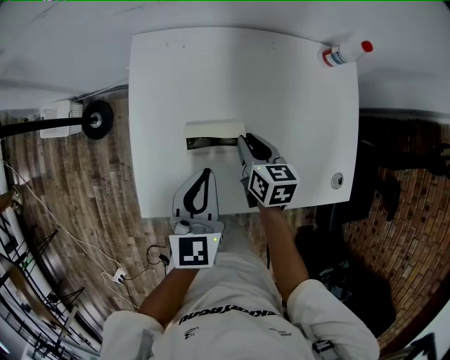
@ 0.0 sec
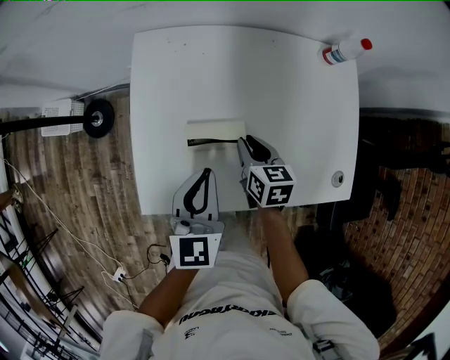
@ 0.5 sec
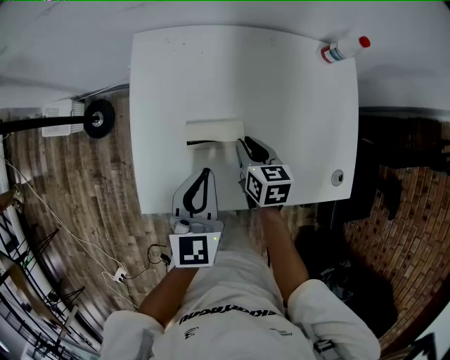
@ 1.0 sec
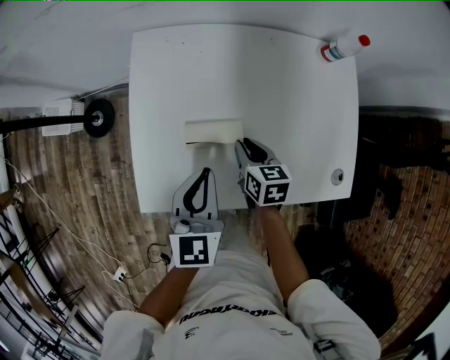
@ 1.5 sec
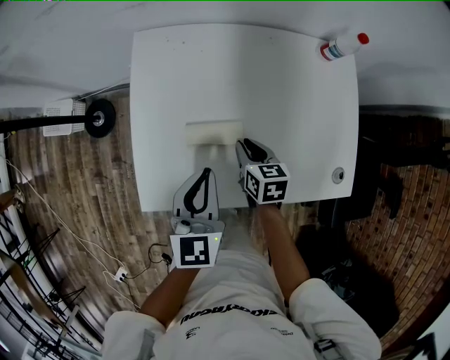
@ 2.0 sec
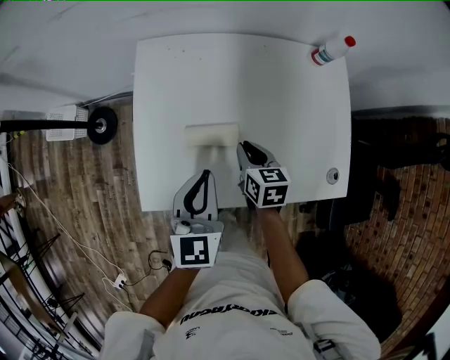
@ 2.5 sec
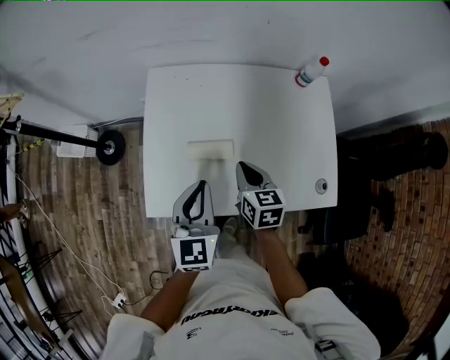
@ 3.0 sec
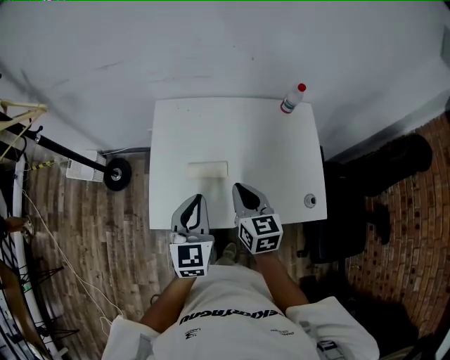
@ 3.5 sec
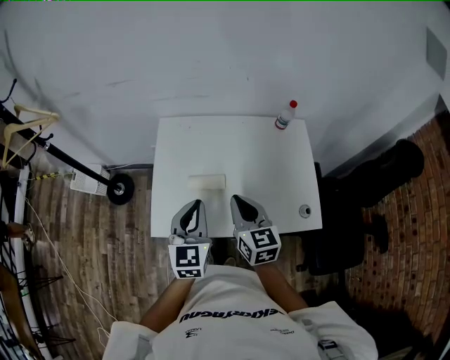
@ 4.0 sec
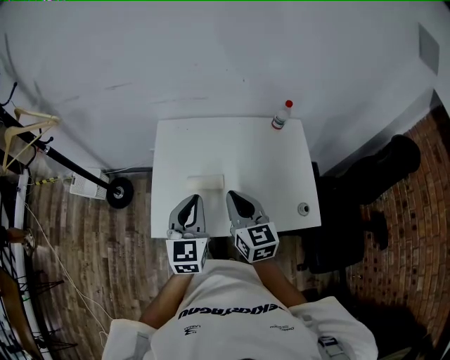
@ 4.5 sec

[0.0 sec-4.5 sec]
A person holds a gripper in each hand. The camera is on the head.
0.0 sec to 2.0 sec: The right gripper ends up about 5 cm from where it was.
2.0 sec to 4.5 sec: The right gripper shifts approximately 30 cm upward, and tilts its fingers some 30 degrees upward. The left gripper moves upward and backward, approximately 20 cm.

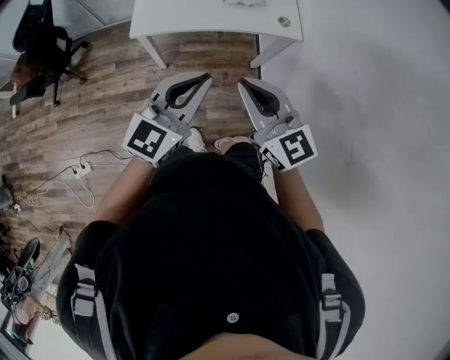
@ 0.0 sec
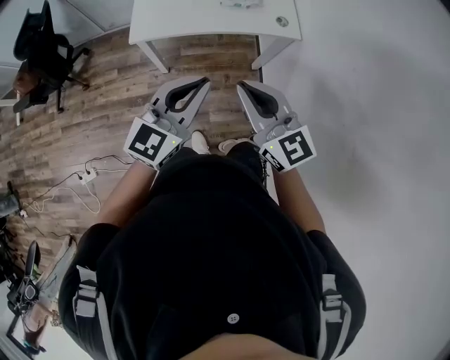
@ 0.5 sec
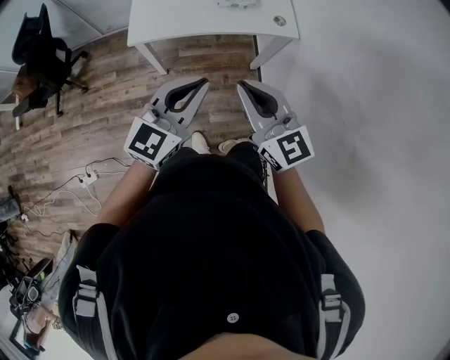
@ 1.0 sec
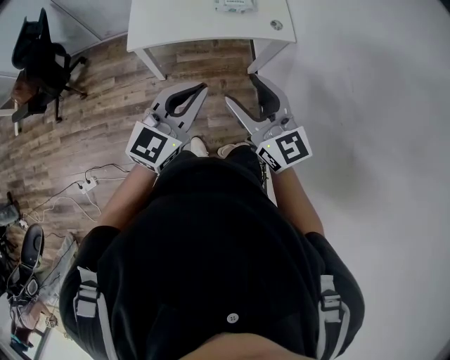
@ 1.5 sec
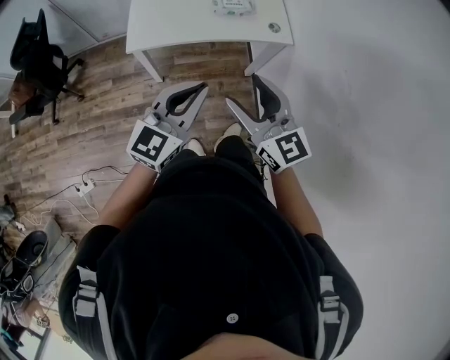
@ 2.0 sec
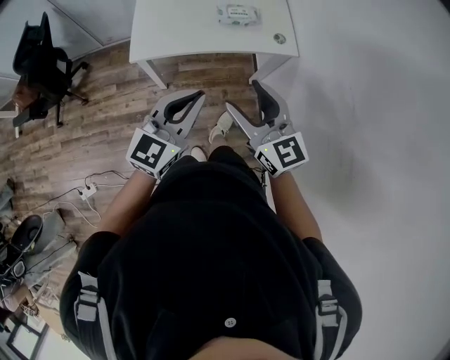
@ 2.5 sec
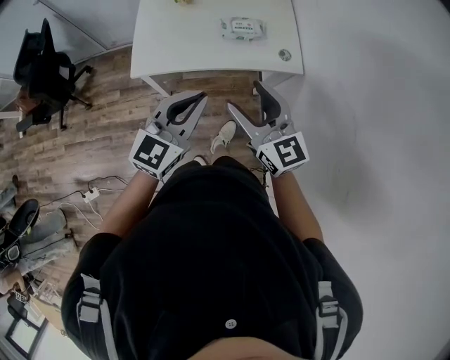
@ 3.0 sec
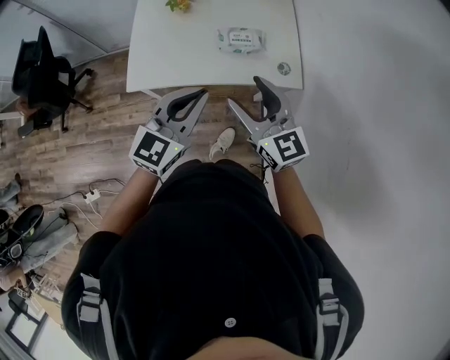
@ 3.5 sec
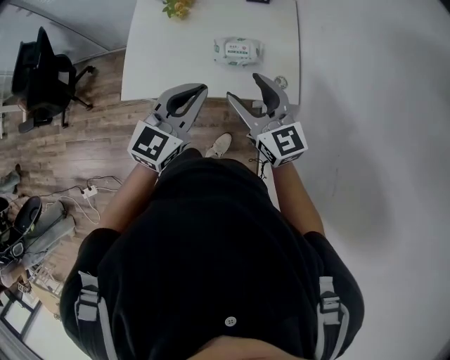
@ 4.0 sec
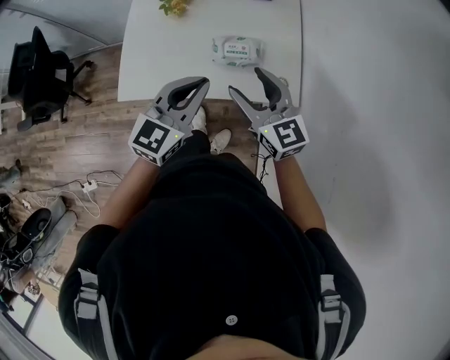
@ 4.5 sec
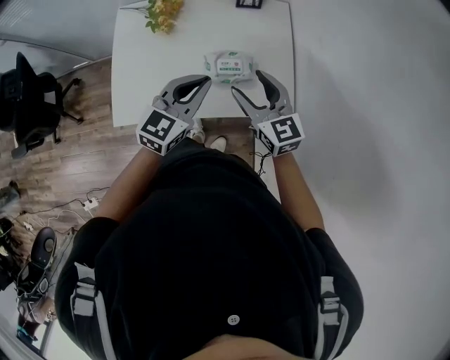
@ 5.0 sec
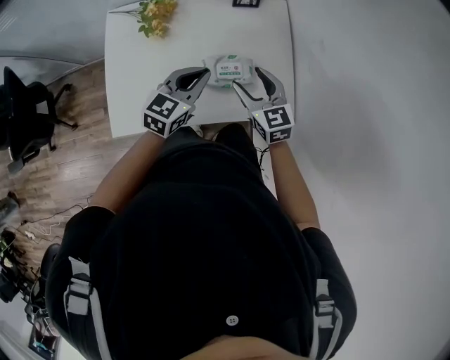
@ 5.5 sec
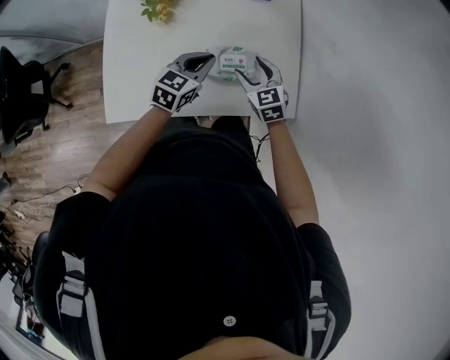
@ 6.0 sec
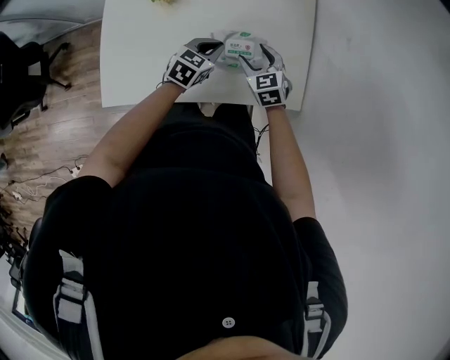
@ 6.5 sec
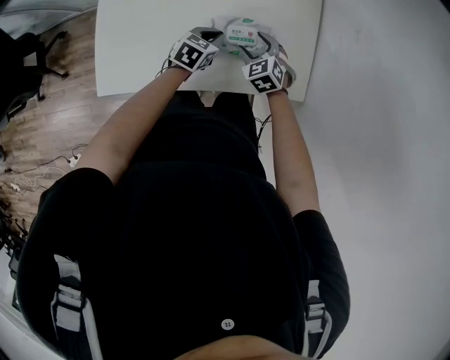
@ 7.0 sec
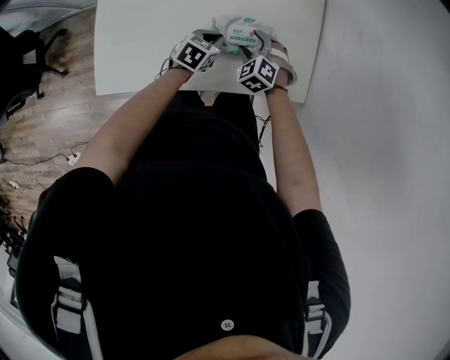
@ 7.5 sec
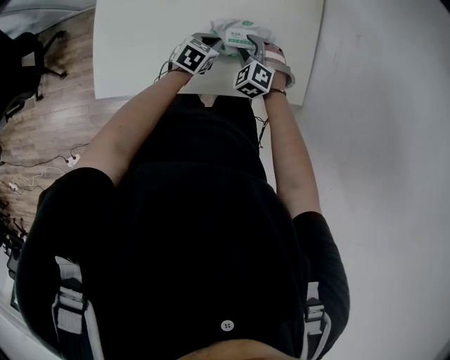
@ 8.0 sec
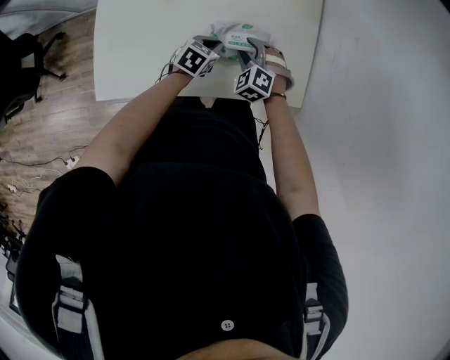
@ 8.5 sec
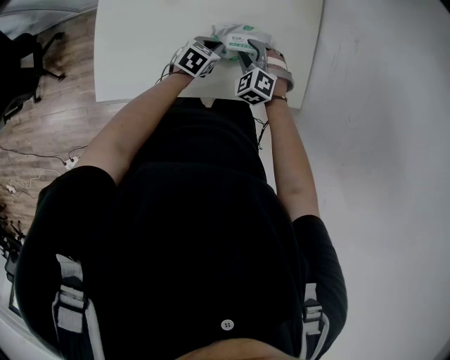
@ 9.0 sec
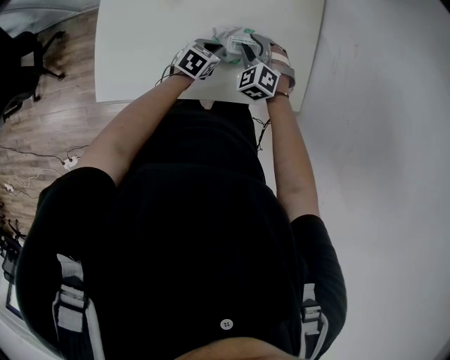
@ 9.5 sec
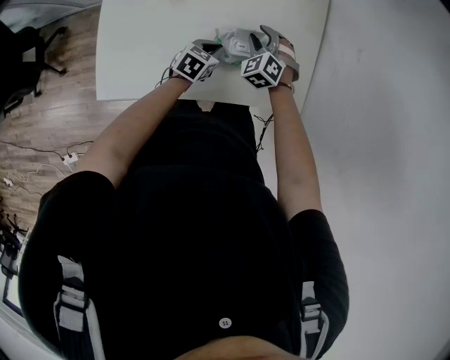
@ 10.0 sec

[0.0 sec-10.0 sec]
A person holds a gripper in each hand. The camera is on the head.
0.0 sec to 2.0 sec: The right gripper opens up.
2.0 sec to 4.0 sec: Both grippers move forward, about 35 cm.
4.0 sec to 6.0 sec: The right gripper heads downward and forward, covering some 30 cm, and angles its fingers downward, by about 30 degrees; the left gripper goes about 35 cm forward and downward, and rotates roughly 20 degrees.
6.0 sec to 8.0 sec: The two grippers go approximately 15 cm downward. The left gripper swivels some 20 degrees. Meanwhile the right gripper rotates roughly 40 degrees.
8.0 sec to 10.0 sec: The right gripper is displaced forward by some 5 cm.

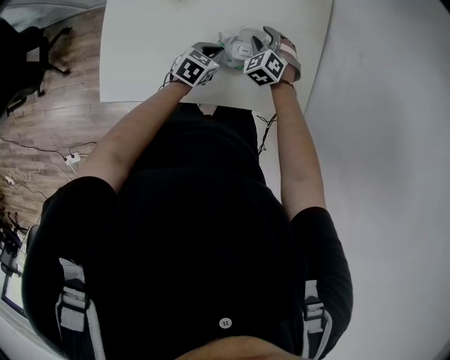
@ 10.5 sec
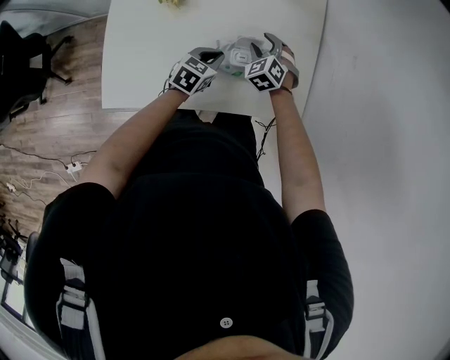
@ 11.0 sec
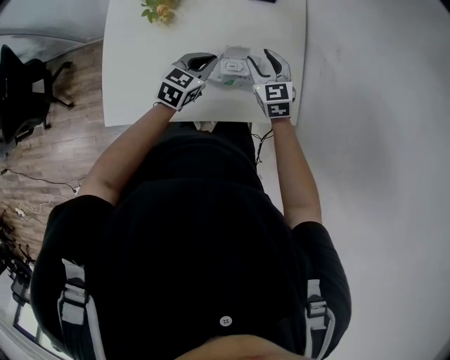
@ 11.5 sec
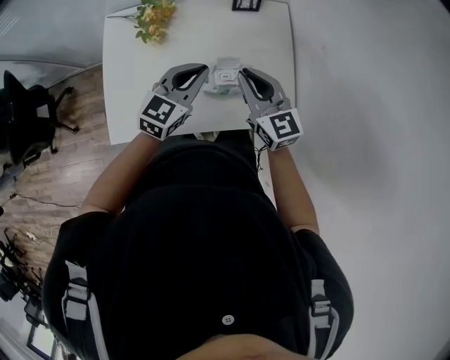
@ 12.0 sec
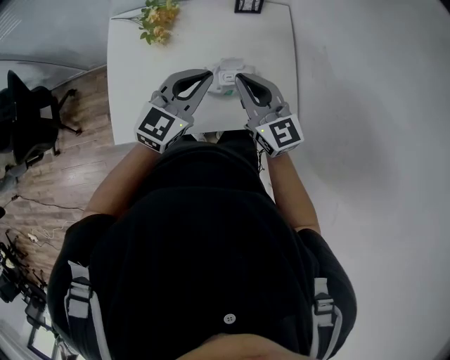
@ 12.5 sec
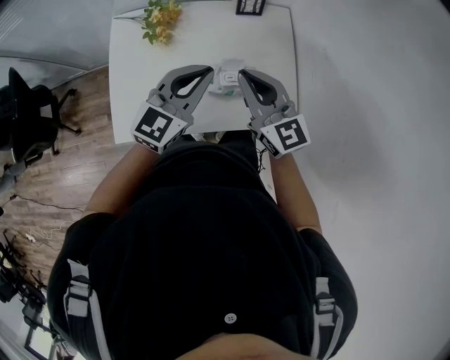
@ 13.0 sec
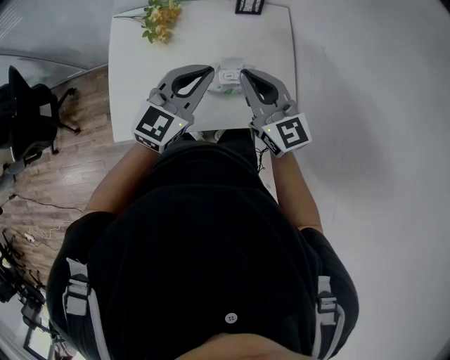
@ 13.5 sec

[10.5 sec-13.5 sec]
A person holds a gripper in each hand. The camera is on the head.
10.5 sec to 12.0 sec: The two grippers go roughly 25 cm upward. The left gripper rotates roughly 30 degrees. Meanwhile the right gripper tips its fingers upward by roughly 40 degrees, and closes its fingers.
12.0 sec to 13.5 sec: Both grippers travel together upward, roughly 10 cm.

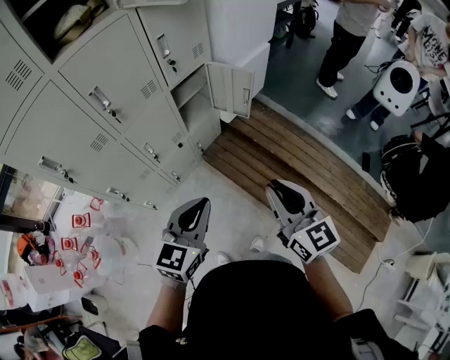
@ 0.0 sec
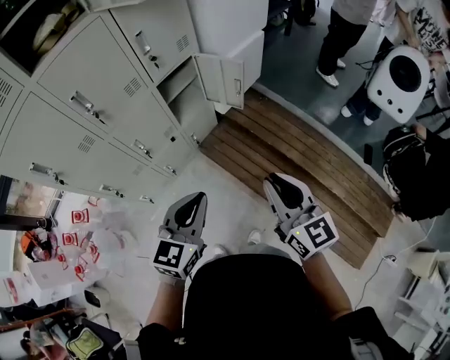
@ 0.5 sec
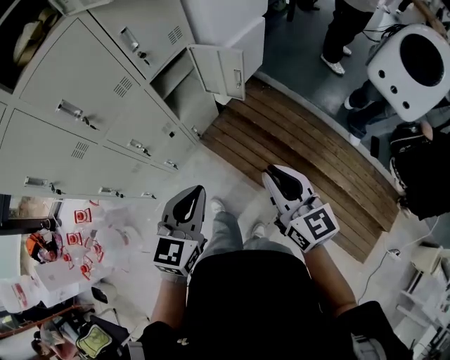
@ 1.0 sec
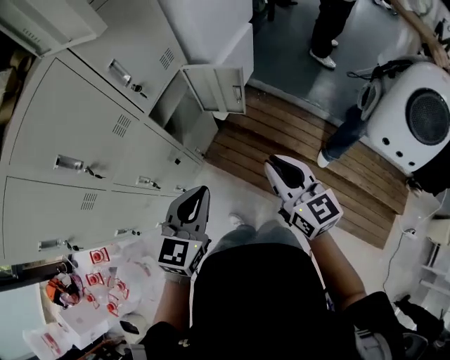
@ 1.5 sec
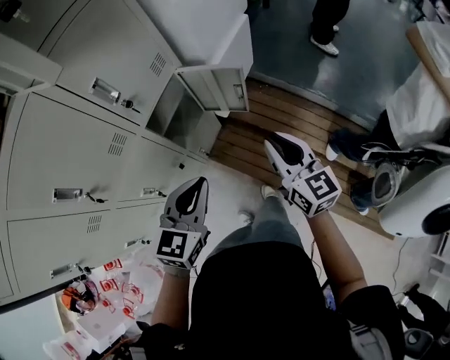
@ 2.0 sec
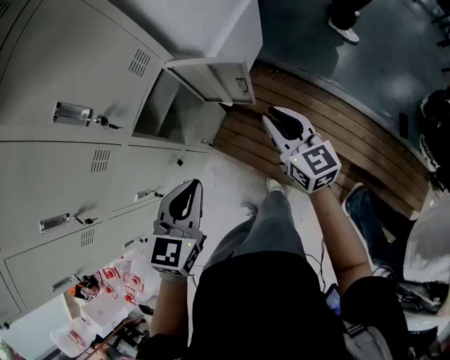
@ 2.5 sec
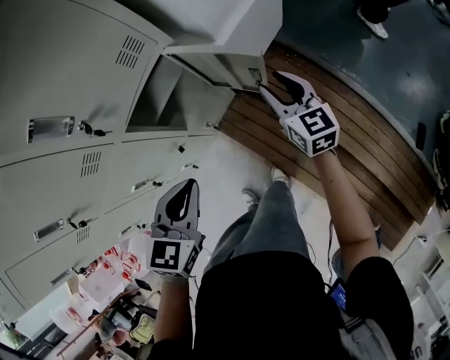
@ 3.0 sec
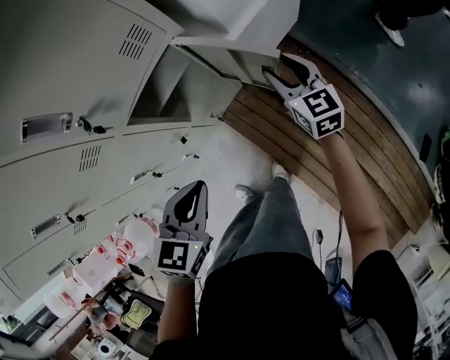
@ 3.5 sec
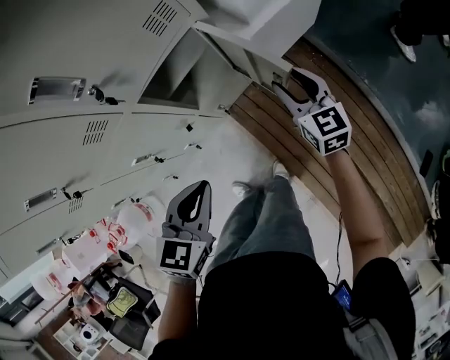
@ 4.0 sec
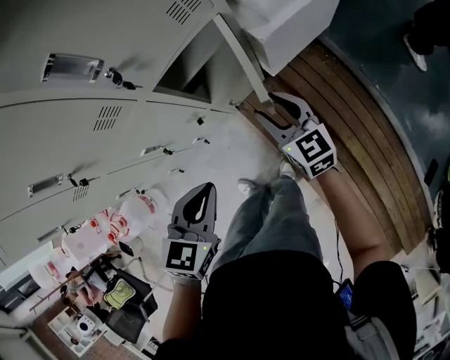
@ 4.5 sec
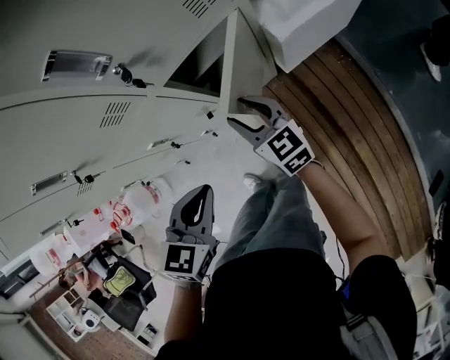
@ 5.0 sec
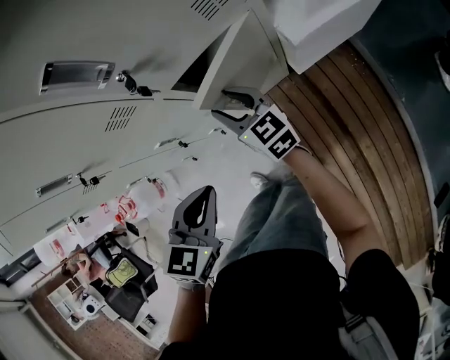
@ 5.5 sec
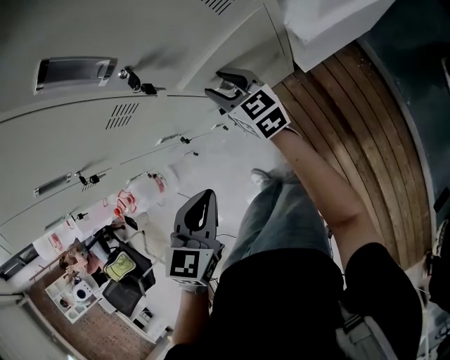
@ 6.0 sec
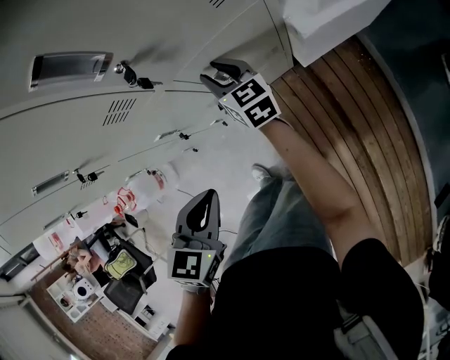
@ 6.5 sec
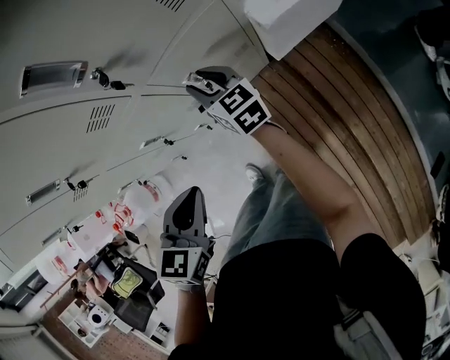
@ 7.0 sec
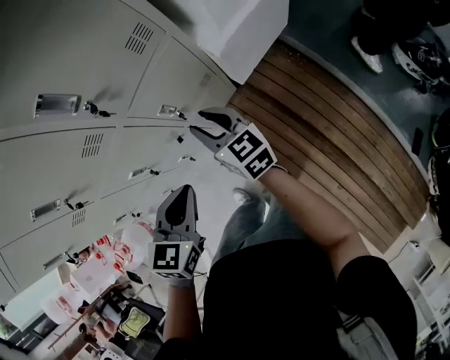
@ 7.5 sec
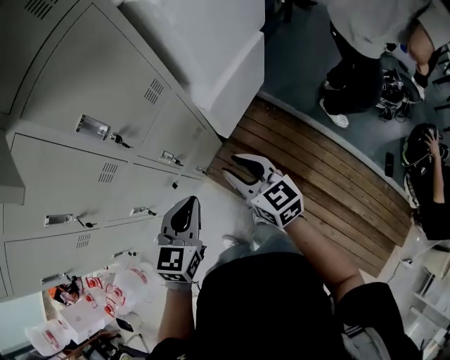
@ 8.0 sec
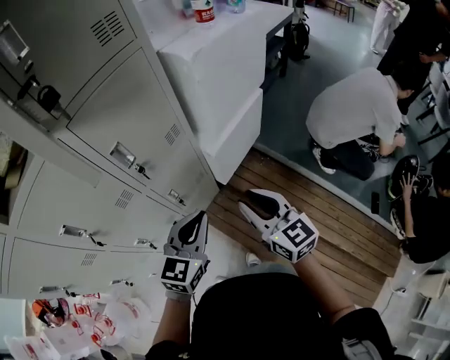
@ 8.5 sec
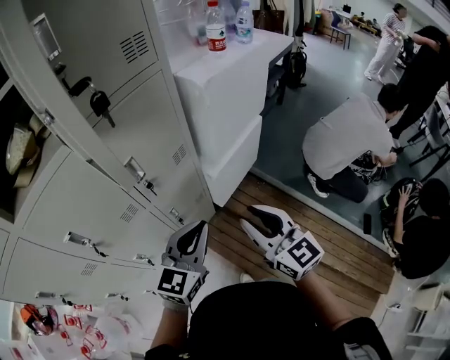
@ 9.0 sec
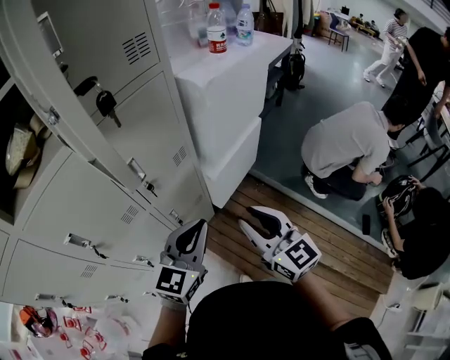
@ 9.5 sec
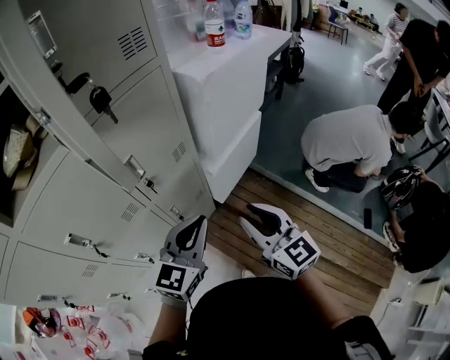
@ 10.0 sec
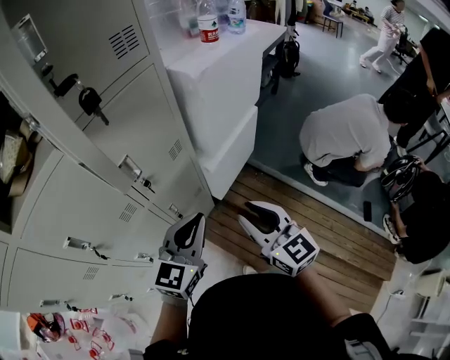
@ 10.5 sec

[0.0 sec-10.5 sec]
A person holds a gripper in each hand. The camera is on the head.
0.0 sec to 2.0 sec: Both grippers travel together forward, some 25 cm.
2.0 sec to 4.0 sec: The left gripper shifts roughly 10 cm downward and forward, and changes its angle by roughly 30 degrees. Meanwhile the right gripper moves forward and downward, some 30 cm, rotates some 20 degrees, and opens its fingers.
4.0 sec to 6.5 sec: The right gripper heads to the left and forward, covering roughly 30 cm, and changes its angle by about 30 degrees. Meanwhile the left gripper heads to the left, covering roughly 10 cm.
6.5 sec to 8.5 sec: The right gripper moves roughly 40 cm, and swivels some 30 degrees. Meanwhile the left gripper shifts about 15 cm upward, and swivels some 40 degrees.
8.5 sec to 10.5 sec: The two grippers go some 5 cm upward.
